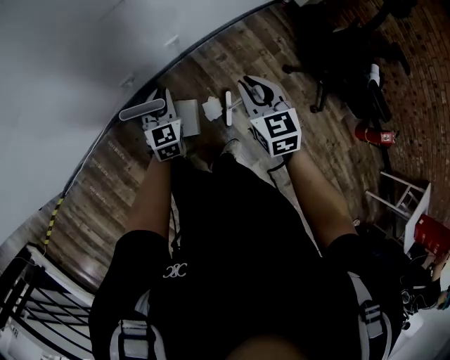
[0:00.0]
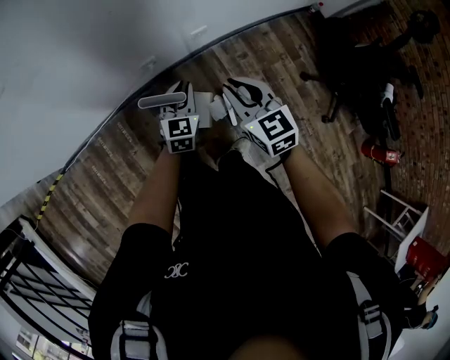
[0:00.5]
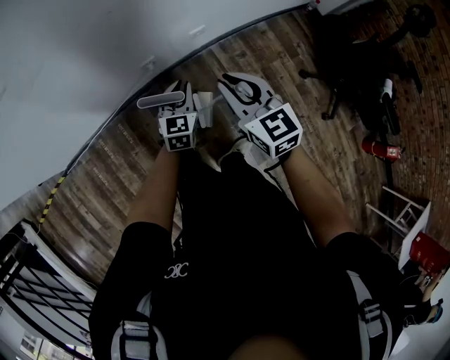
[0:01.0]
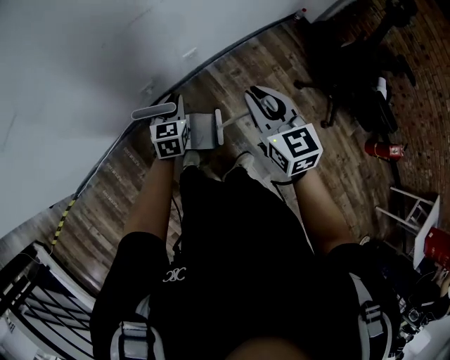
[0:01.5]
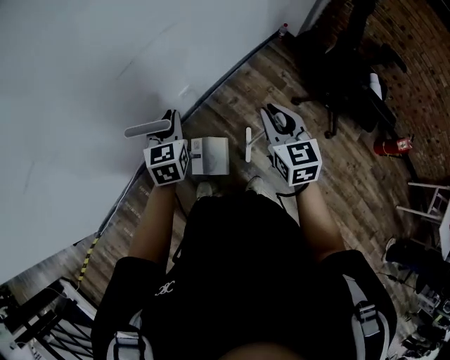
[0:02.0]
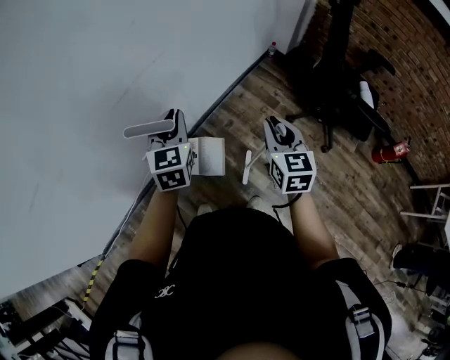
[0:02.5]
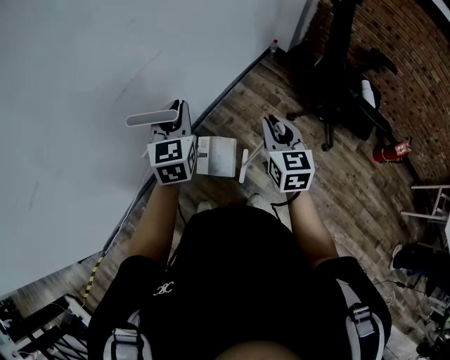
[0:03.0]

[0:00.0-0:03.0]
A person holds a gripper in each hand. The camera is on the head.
0:00.0 to 0:01.5: The right gripper moves upward, approximately 10 cm, and goes to the left and returns, about 15 cm each way.
0:01.5 to 0:03.0: The right gripper moves to the right, roughly 20 cm, and rotates roughly 30 degrees; the left gripper is displaced upward and to the right by roughly 30 cm, and rotates approximately 20 degrees.

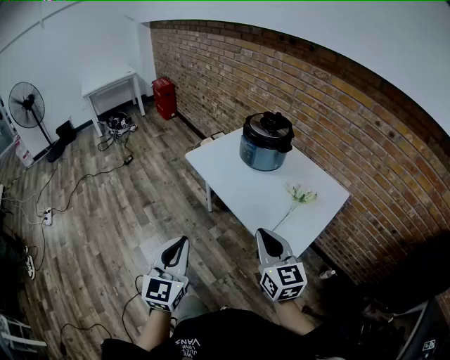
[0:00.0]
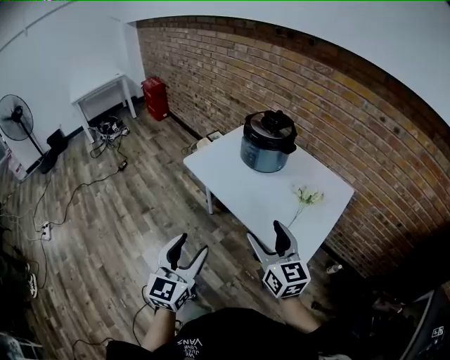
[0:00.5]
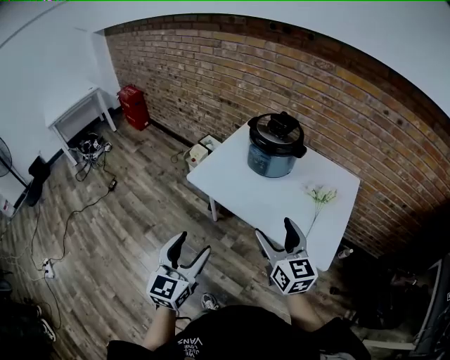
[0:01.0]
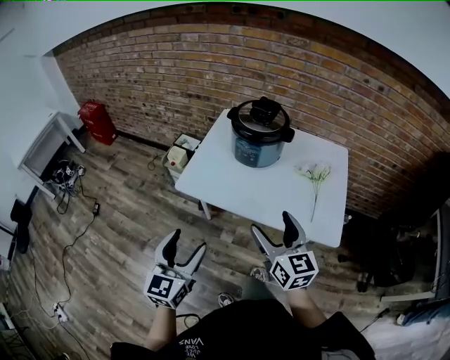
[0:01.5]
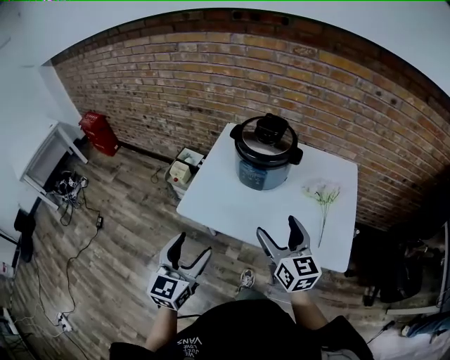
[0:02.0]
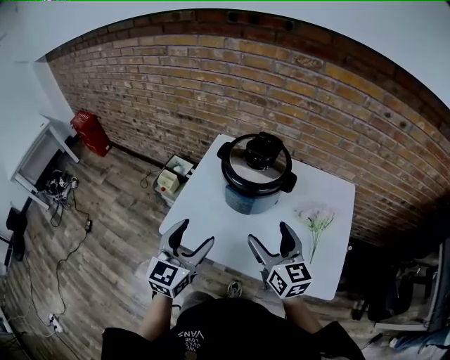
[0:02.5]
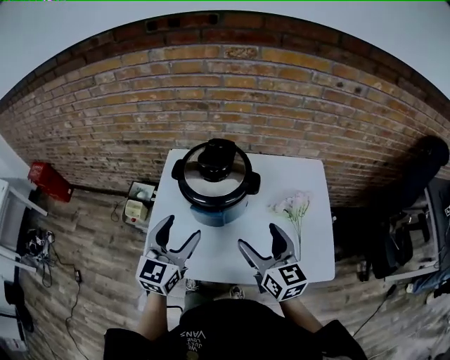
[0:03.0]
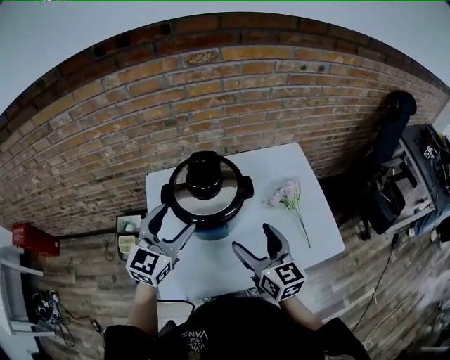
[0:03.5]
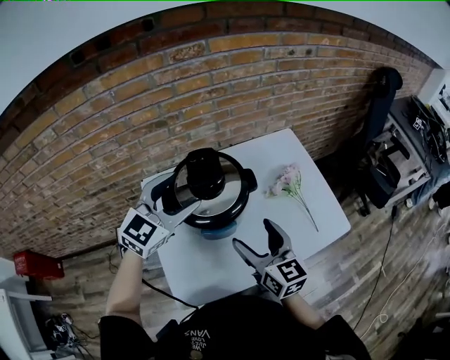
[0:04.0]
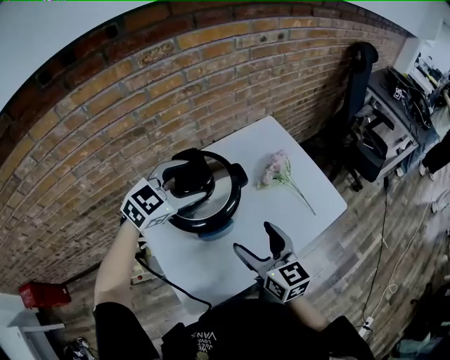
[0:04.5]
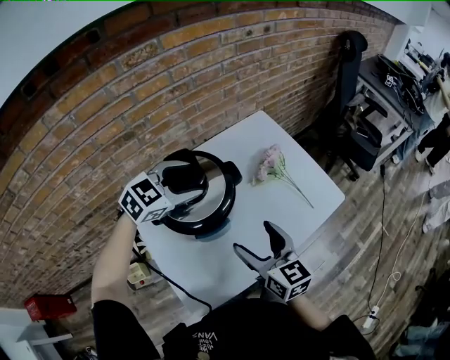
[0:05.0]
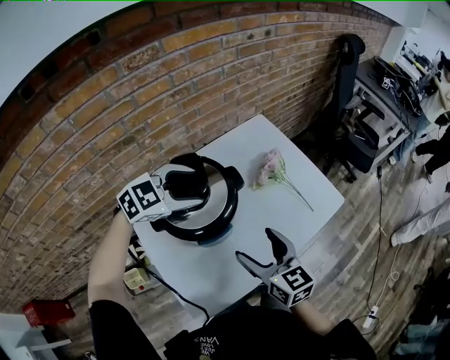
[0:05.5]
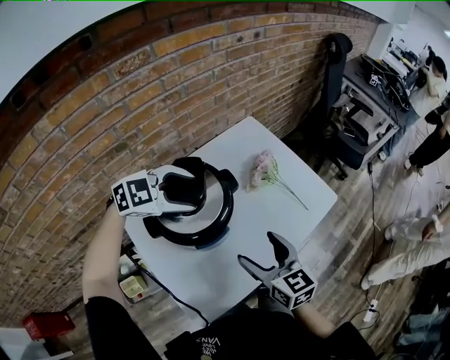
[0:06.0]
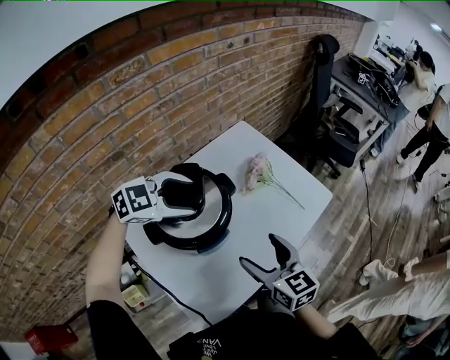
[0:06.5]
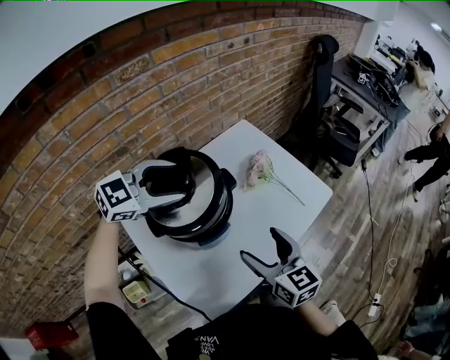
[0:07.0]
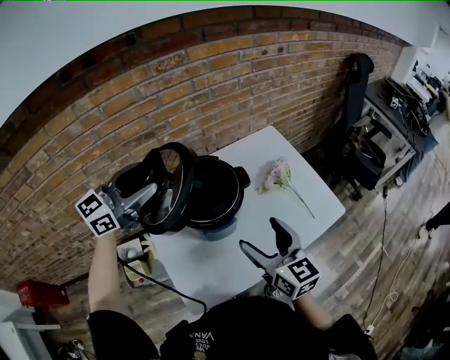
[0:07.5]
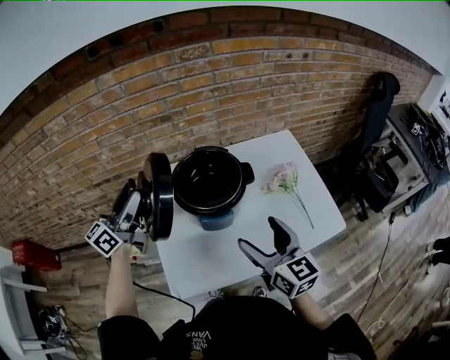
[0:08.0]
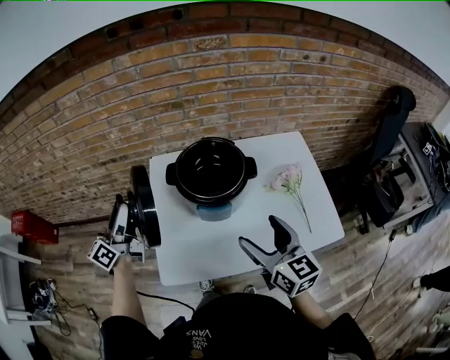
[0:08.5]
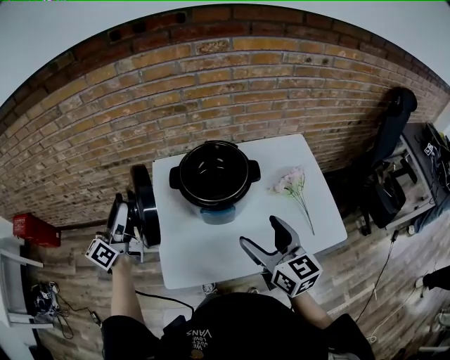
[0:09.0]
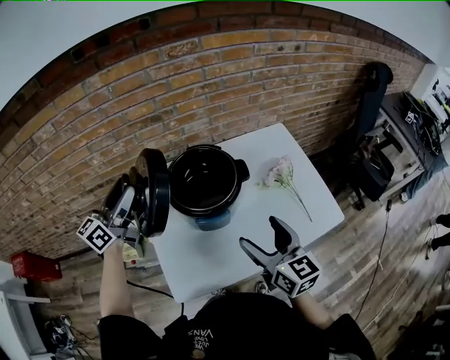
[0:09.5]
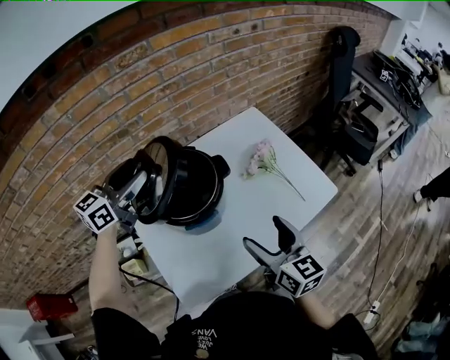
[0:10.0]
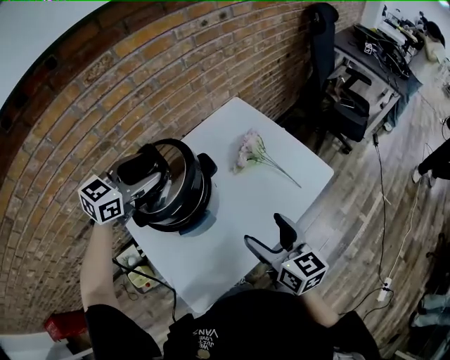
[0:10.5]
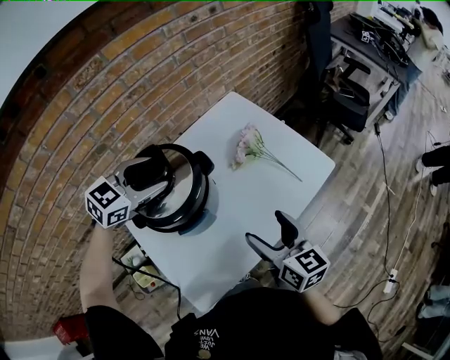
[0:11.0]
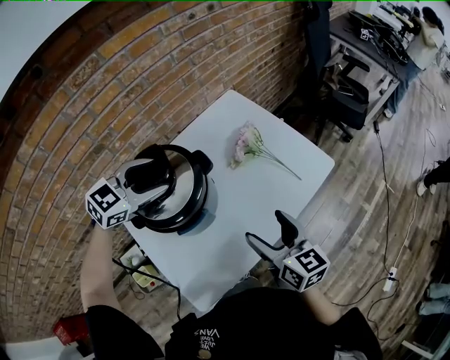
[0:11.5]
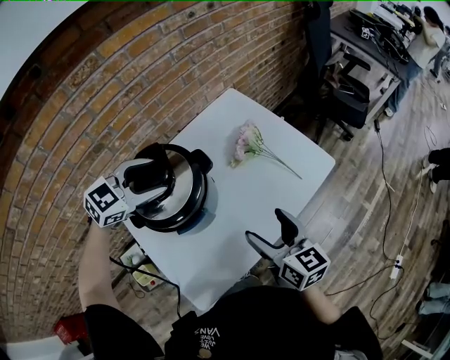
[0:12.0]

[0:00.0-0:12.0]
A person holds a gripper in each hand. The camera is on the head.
0:00.0 to 0:02.0: The left gripper shifts by roughly 35 cm, rotates approximately 40 degrees, and opens its fingers. The right gripper ends up approximately 25 cm from where it was, swivels roughly 30 degrees, and opens up.
0:02.0 to 0:04.0: The right gripper changes place by roughly 15 cm, and swivels roughly 30 degrees, while the left gripper changes place by approximately 40 cm, and turns by approximately 60 degrees.
0:04.0 to 0:06.0: The left gripper changes place by roughly 10 cm, and rotates about 60 degrees.
0:06.0 to 0:08.0: The right gripper shifts some 5 cm upward, and turns by about 20 degrees, while the left gripper moves about 25 cm, and tips its fingers upward by about 50 degrees.
0:08.0 to 0:10.0: The right gripper moves about 5 cm. The left gripper ends up some 15 cm from where it was, and turns by about 30 degrees.
0:10.0 to 0:12.0: The left gripper moves to the right and downward, about 15 cm, and rotates some 50 degrees.

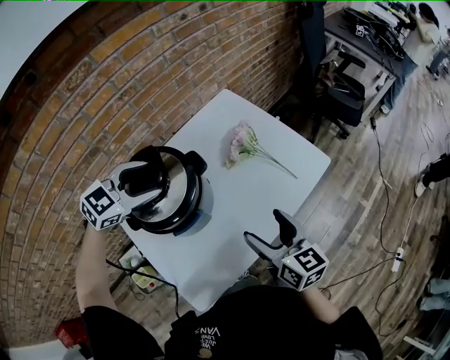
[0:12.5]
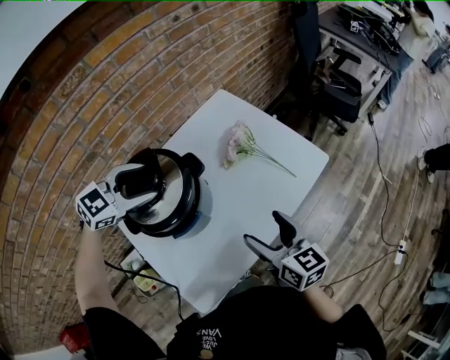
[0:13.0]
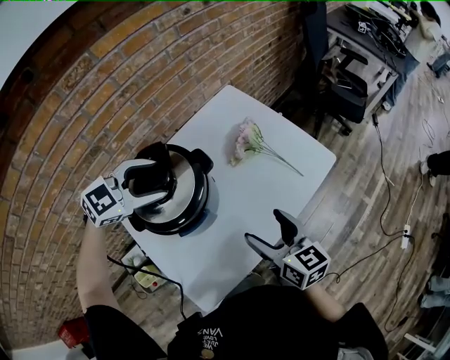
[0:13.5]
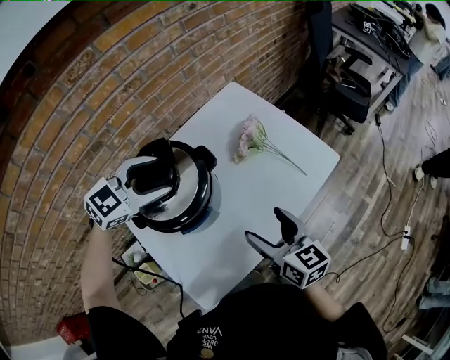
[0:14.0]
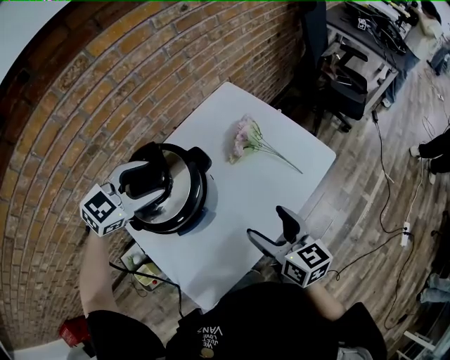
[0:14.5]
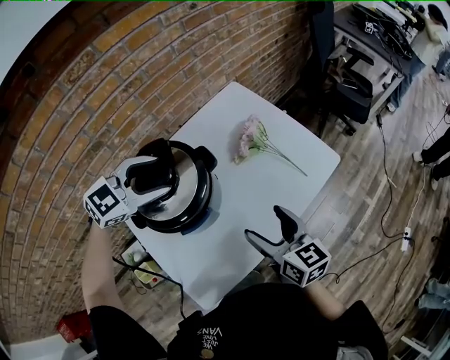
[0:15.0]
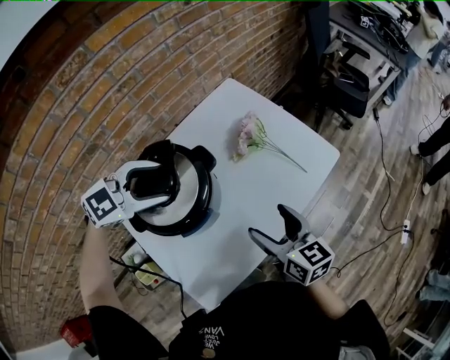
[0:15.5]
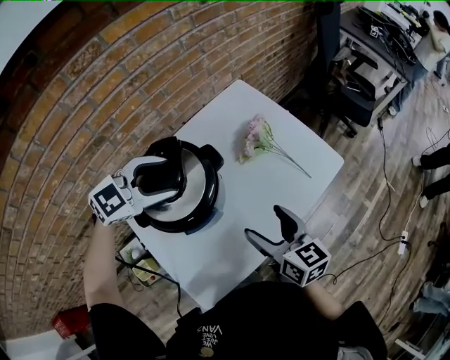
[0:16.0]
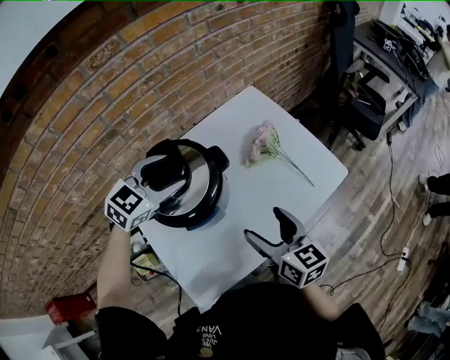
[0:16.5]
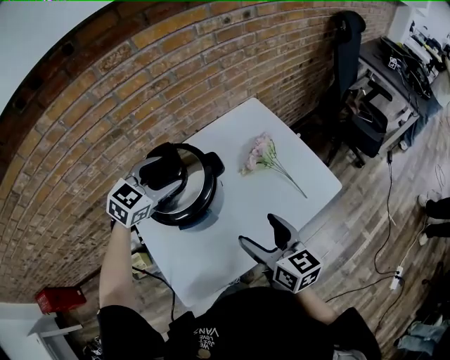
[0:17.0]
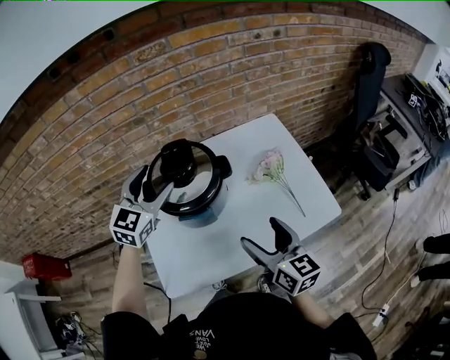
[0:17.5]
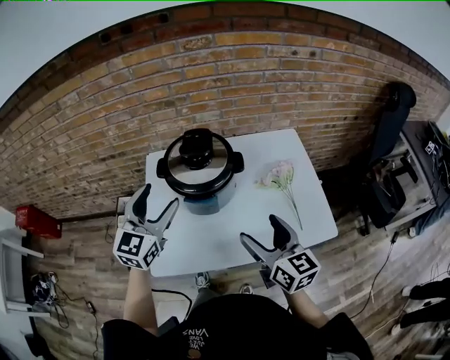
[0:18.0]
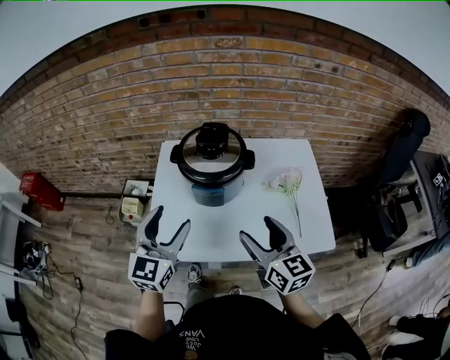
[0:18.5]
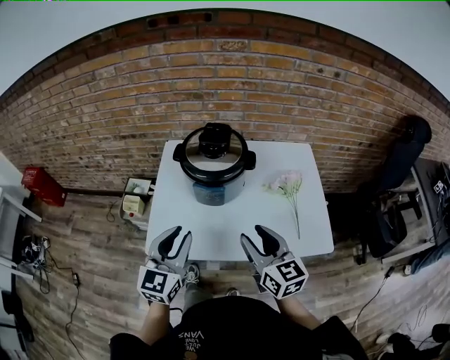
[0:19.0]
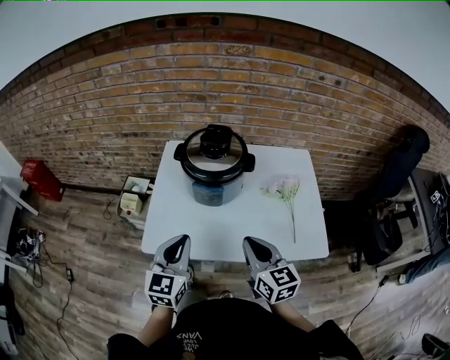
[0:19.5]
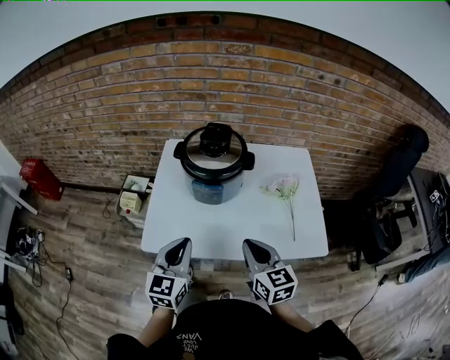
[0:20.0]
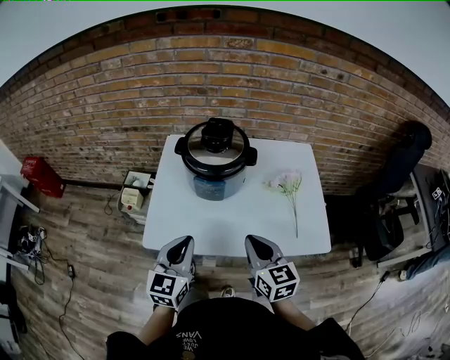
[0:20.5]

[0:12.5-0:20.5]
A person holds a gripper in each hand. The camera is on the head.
0:12.5 to 0:16.5: The grippers move only a little.
0:16.5 to 0:18.5: The right gripper heads upward, covering some 5 cm, and swivels roughly 30 degrees. Meanwhile the left gripper ends up approximately 25 cm from where it was, and rotates approximately 70 degrees.
0:18.5 to 0:20.5: The right gripper goes about 5 cm downward, and closes, while the left gripper is displaced downward and backward by roughly 10 cm, and closes up.

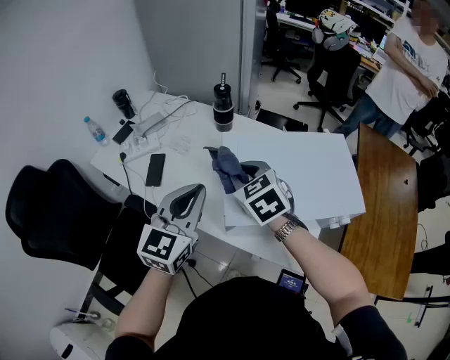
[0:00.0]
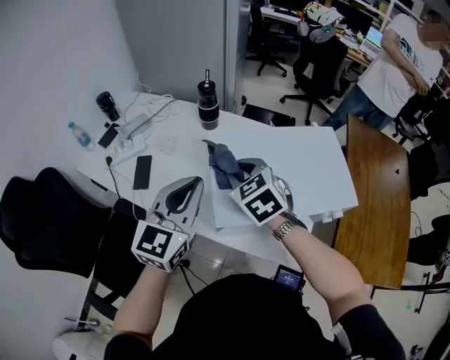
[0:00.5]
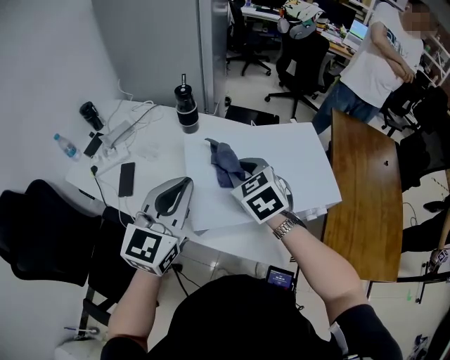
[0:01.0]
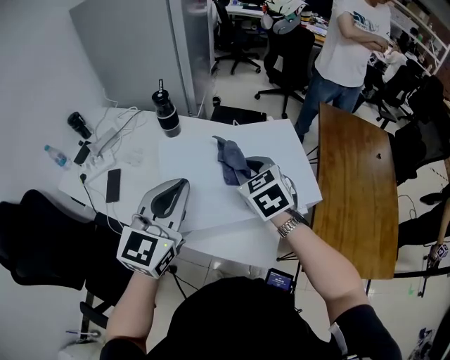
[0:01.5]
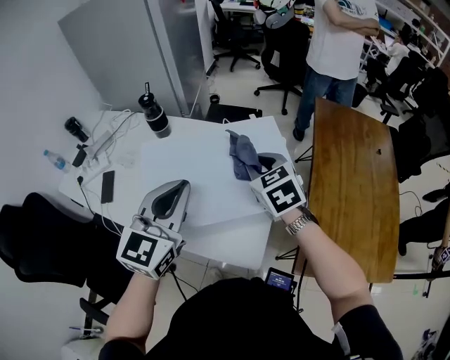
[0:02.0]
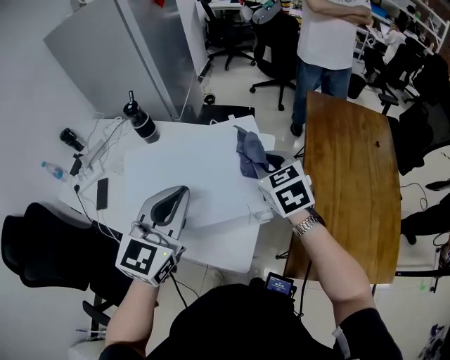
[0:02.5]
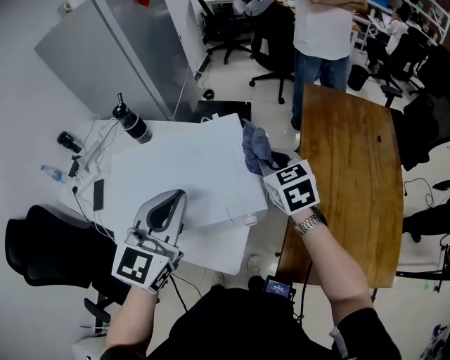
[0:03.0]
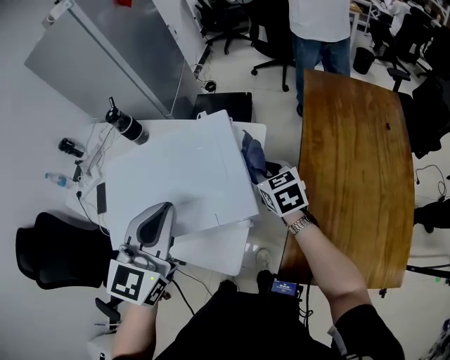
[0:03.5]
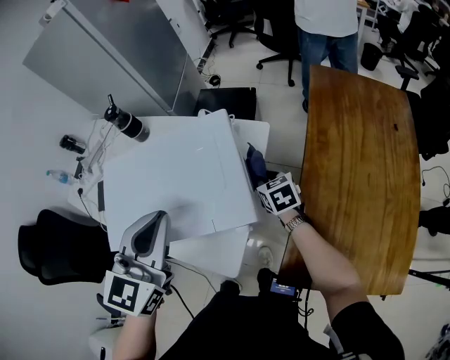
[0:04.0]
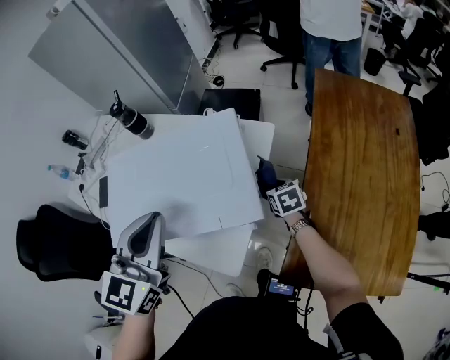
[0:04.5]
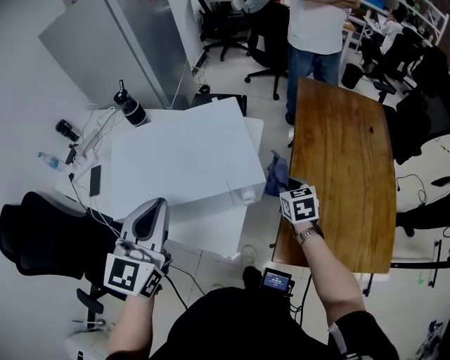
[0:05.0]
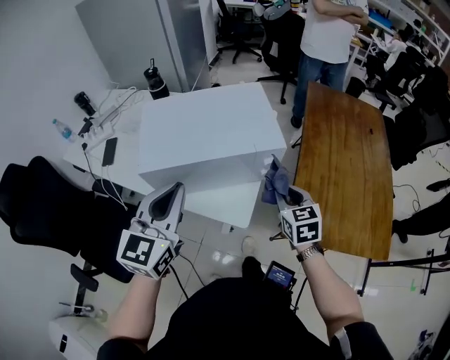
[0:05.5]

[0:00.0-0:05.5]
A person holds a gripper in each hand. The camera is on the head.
0:00.0 to 0:02.0: The grippers both shift to the right by about 25 cm.
0:02.0 to 0:03.5: The right gripper travels to the right and downward by some 20 cm, while the left gripper heads to the right, covering some 15 cm.
0:03.5 to 0:05.5: The right gripper is displaced backward by some 25 cm. The left gripper travels backward and to the left by about 20 cm.
